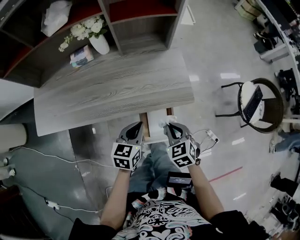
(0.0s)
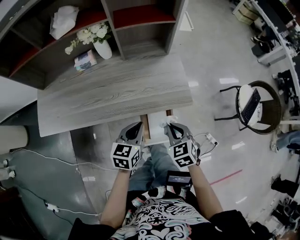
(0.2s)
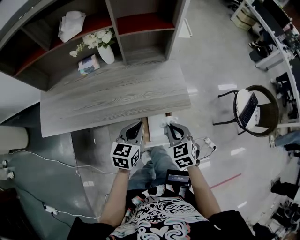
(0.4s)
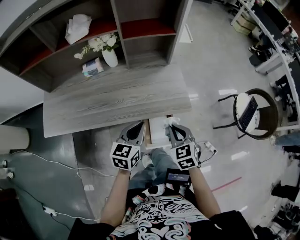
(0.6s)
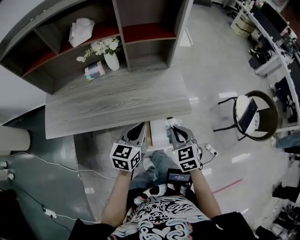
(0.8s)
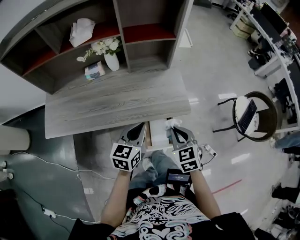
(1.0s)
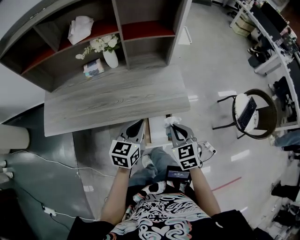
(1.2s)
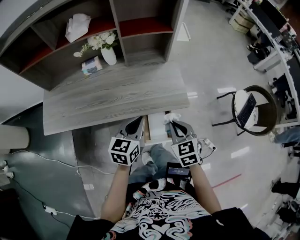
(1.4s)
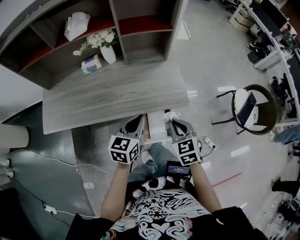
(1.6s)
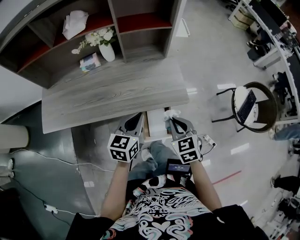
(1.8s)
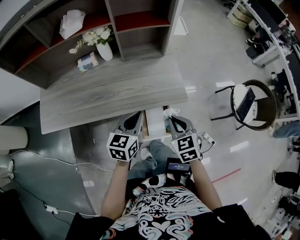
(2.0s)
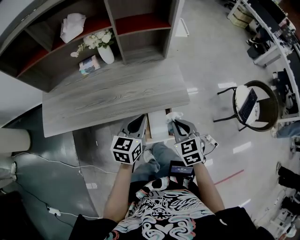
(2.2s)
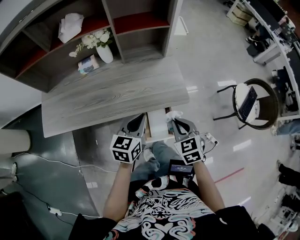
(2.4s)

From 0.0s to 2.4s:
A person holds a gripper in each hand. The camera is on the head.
From 0.0s to 1.2s: The two grippers go some 10 cm upward.
From 1.2s to 2.4s: There are only small adjustments of the grippers.

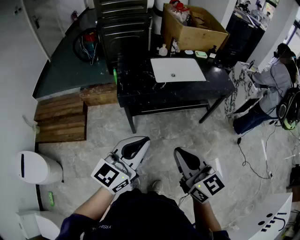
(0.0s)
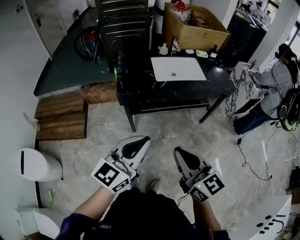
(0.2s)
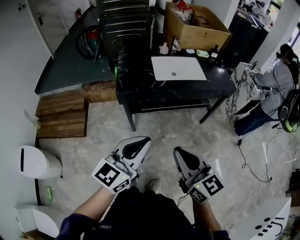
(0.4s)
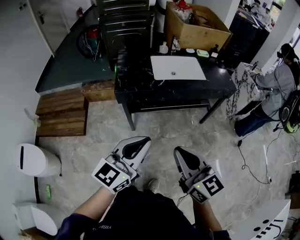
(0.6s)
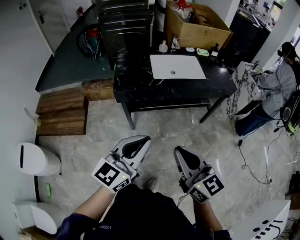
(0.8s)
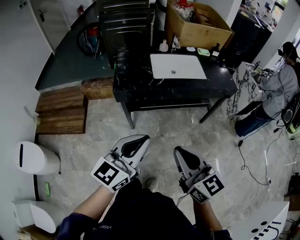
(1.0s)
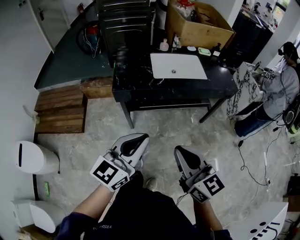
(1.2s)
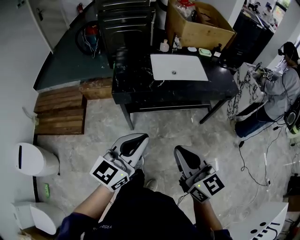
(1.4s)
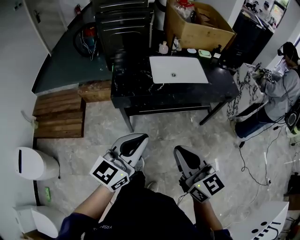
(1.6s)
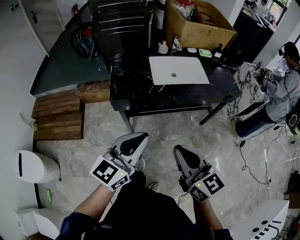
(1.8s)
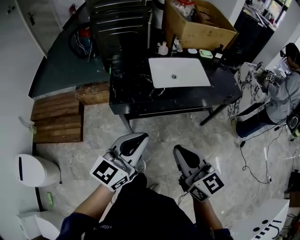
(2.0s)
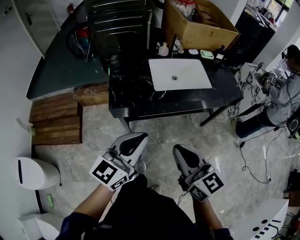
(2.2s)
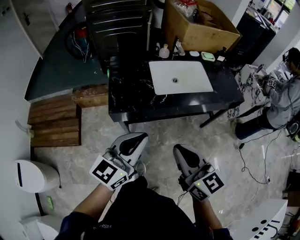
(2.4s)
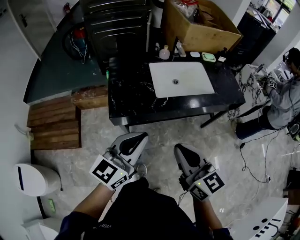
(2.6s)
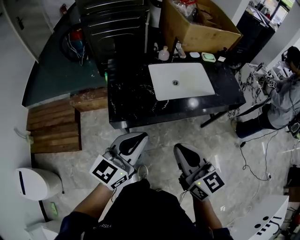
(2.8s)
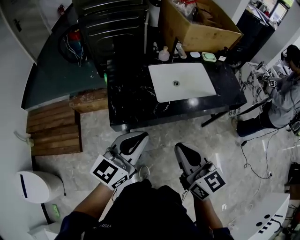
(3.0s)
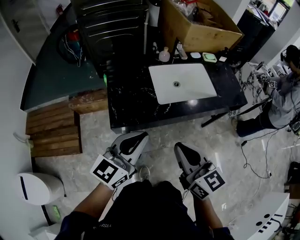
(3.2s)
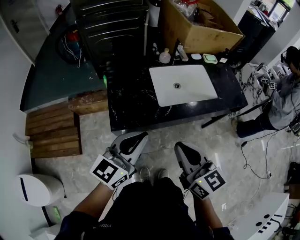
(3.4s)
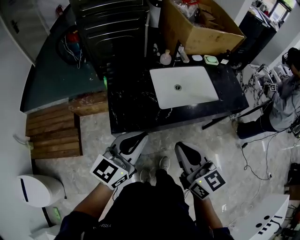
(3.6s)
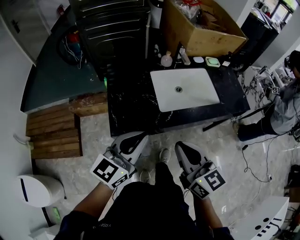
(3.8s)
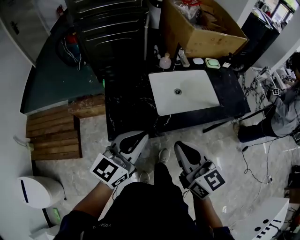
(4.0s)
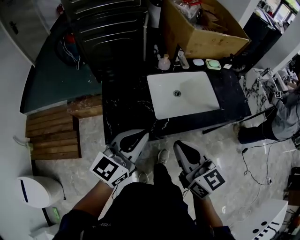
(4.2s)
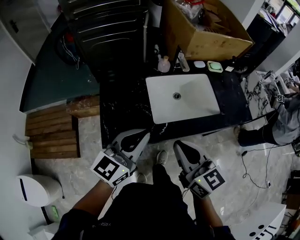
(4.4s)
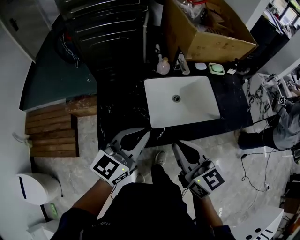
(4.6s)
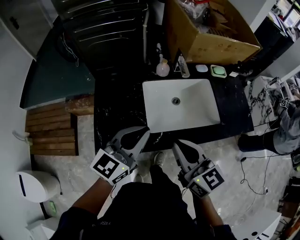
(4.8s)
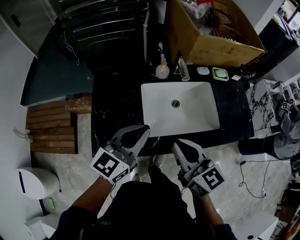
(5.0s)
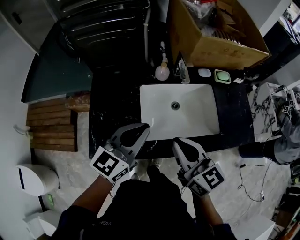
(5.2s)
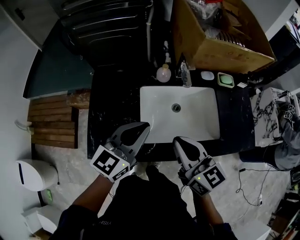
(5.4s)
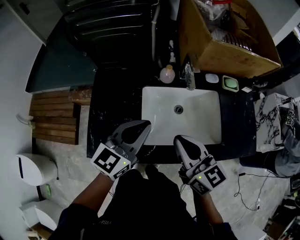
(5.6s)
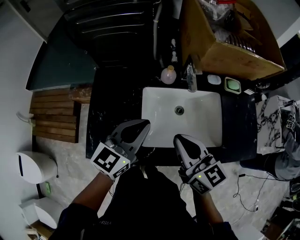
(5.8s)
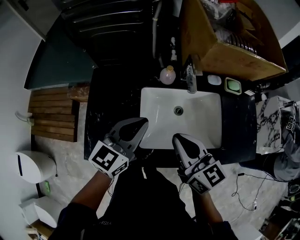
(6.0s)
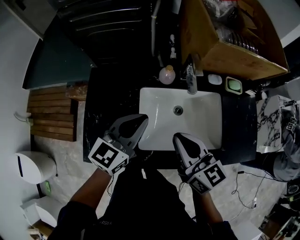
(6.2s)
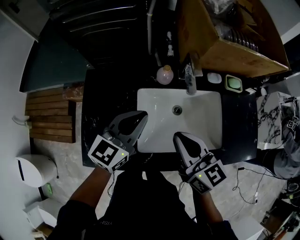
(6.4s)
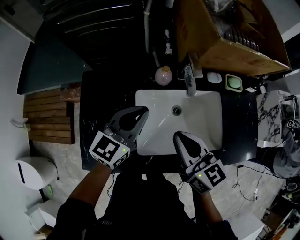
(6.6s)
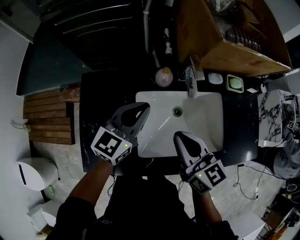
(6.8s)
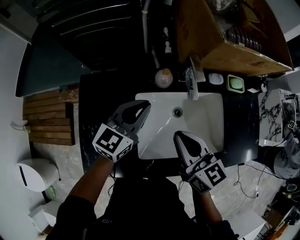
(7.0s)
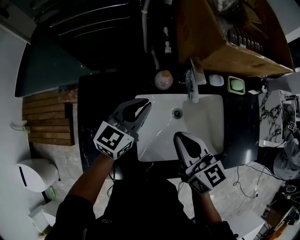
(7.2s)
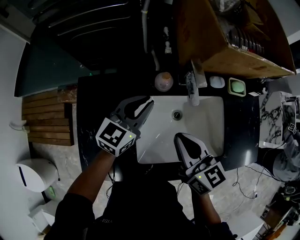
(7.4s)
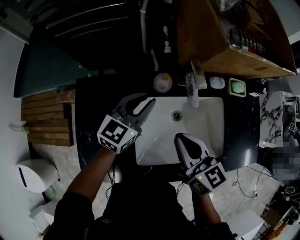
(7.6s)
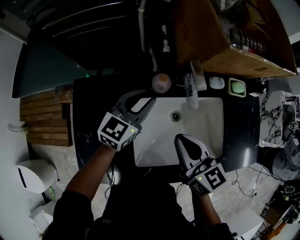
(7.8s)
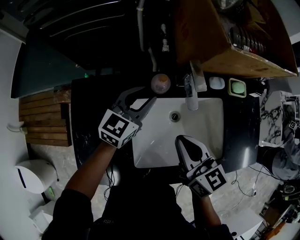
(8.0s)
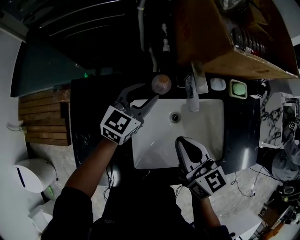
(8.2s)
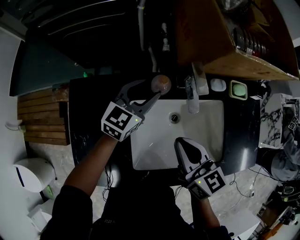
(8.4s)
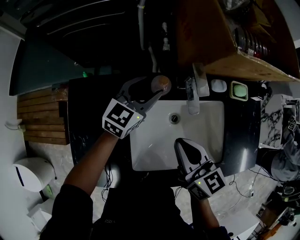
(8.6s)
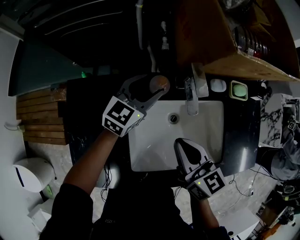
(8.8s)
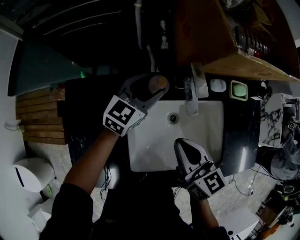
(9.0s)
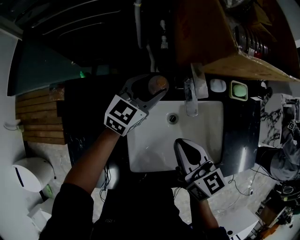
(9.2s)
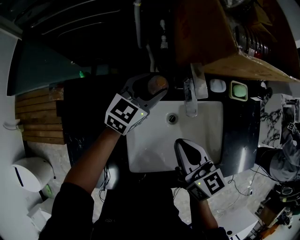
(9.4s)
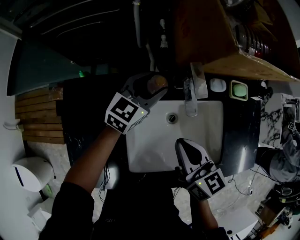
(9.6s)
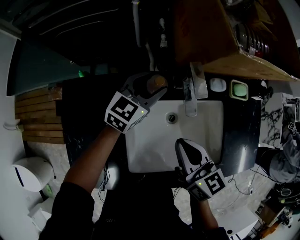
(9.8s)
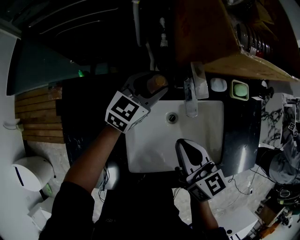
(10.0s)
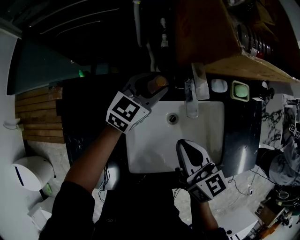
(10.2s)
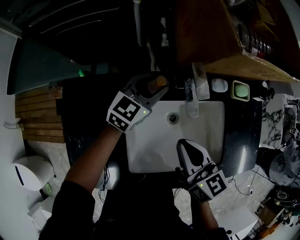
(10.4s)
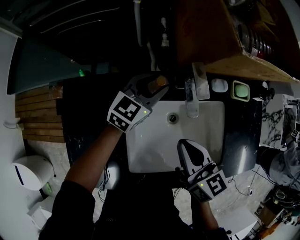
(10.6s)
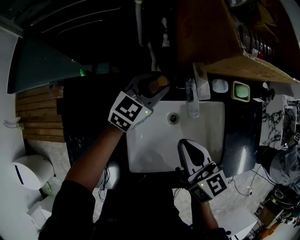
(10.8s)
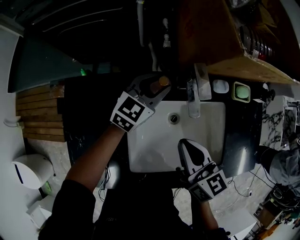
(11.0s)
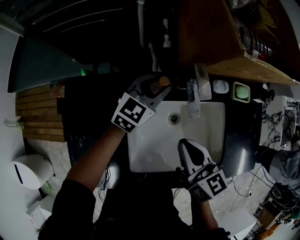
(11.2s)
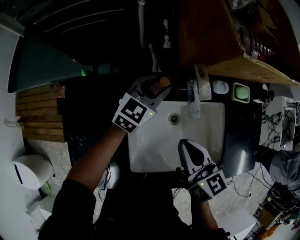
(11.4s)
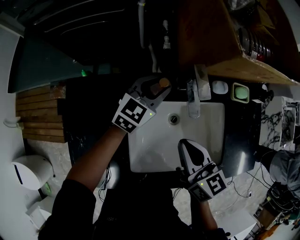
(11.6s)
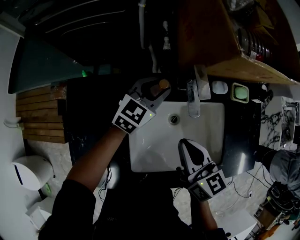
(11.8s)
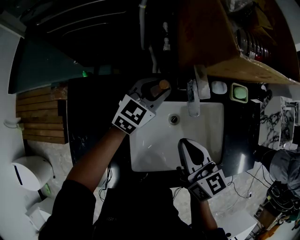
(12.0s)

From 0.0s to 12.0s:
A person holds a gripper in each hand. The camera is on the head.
From 0.0s to 1.6s: The two grippers go roughly 5 cm forward.
From 1.6s to 3.0s: The two grippers go some 20 cm forward.
From 3.0s to 4.4s: Both grippers travel together forward, about 15 cm.
From 4.4s to 6.0s: The grippers both shift forward by about 20 cm.
From 6.0s to 7.6s: The right gripper goes roughly 10 cm forward and downward, while the left gripper travels forward and downward by approximately 20 cm.
From 7.6s to 9.0s: The left gripper shifts about 10 cm forward, and opens its fingers.
From 9.0s to 12.0s: There are only small adjustments of the grippers.

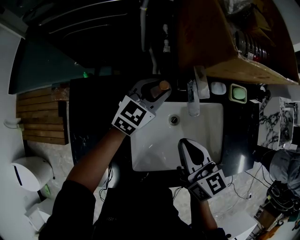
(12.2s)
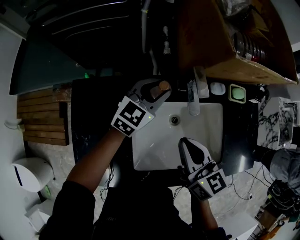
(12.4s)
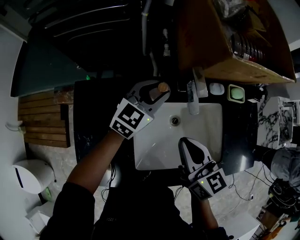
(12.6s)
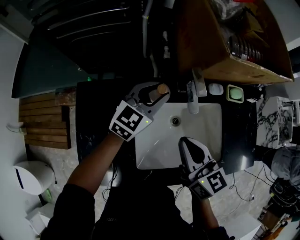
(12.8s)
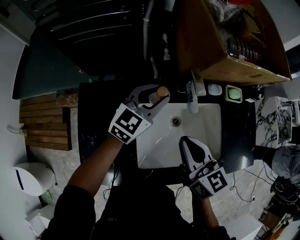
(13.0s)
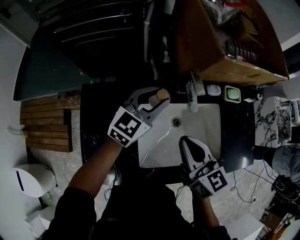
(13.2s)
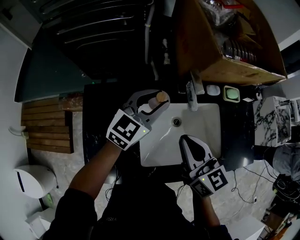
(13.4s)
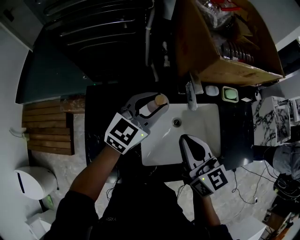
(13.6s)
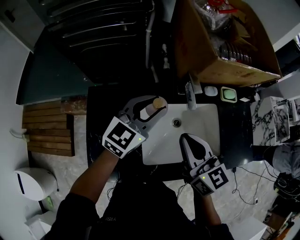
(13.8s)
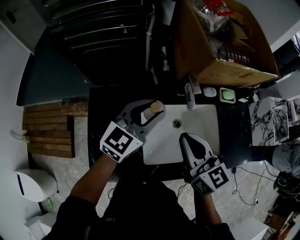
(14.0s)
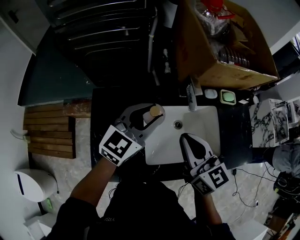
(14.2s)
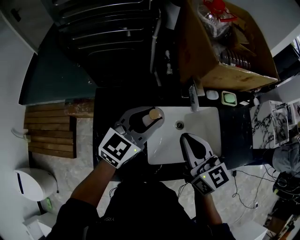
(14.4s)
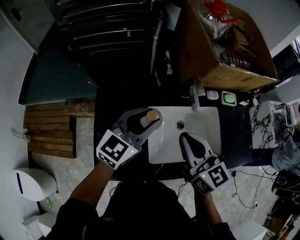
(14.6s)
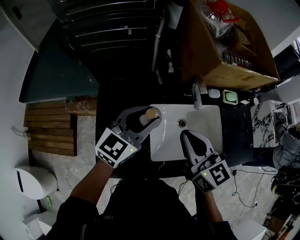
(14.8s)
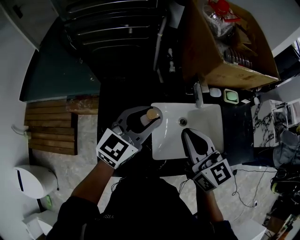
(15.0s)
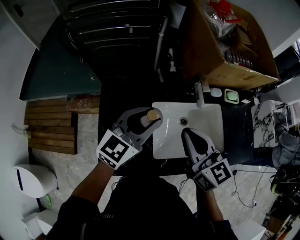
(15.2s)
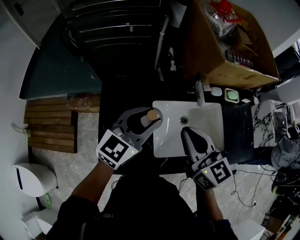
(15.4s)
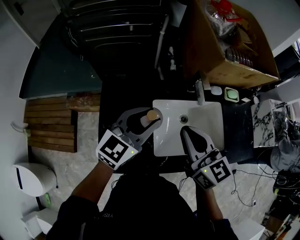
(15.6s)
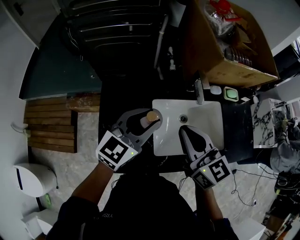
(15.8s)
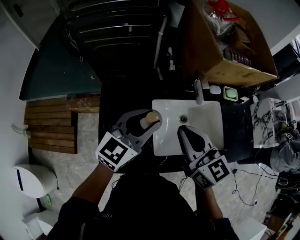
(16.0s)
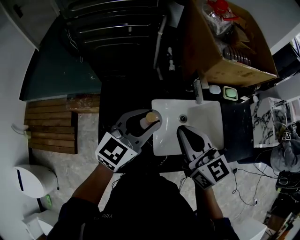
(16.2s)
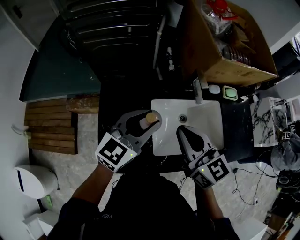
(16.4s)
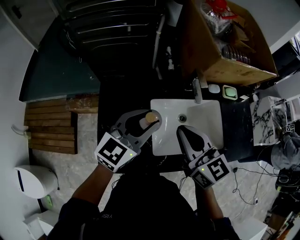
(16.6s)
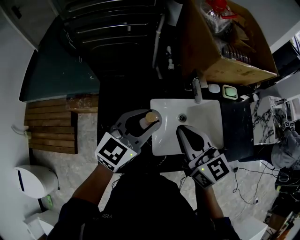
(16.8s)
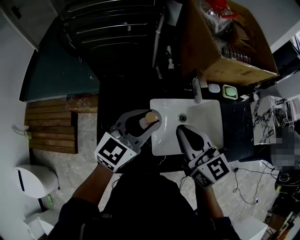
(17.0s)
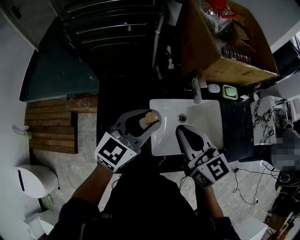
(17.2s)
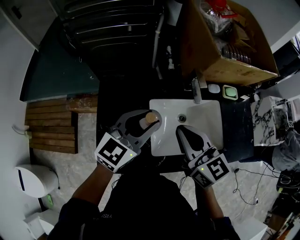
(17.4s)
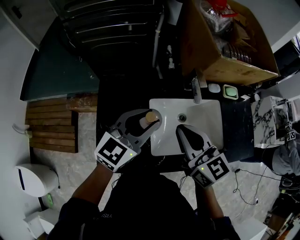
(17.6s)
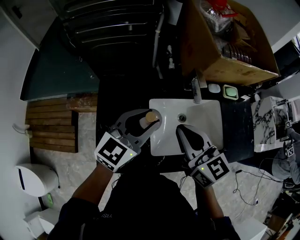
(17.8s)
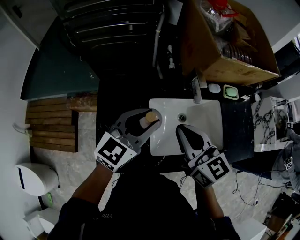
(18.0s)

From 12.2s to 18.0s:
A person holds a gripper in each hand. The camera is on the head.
From 12.2s to 13.6s: The left gripper shifts about 15 cm upward and backward, while the right gripper is displaced upward by some 10 cm.
From 13.6s to 15.0s: The right gripper goes roughly 10 cm upward and to the left. The left gripper moves backward and to the left, about 10 cm.
From 15.0s to 18.0s: The grippers make only small movements.

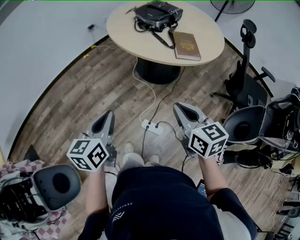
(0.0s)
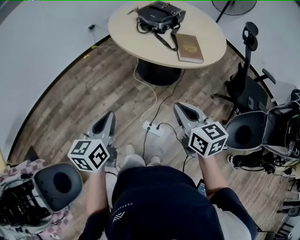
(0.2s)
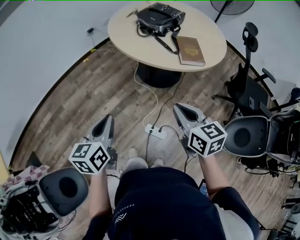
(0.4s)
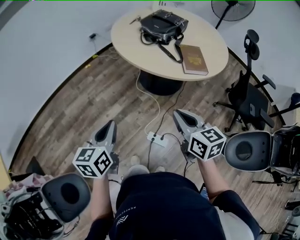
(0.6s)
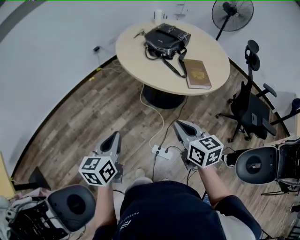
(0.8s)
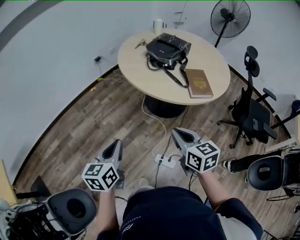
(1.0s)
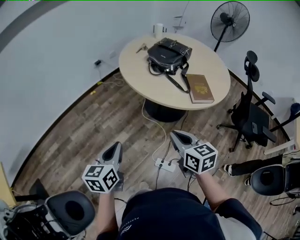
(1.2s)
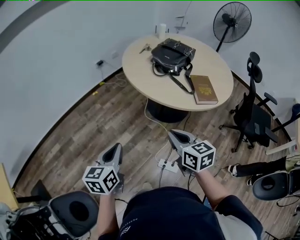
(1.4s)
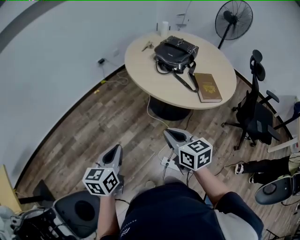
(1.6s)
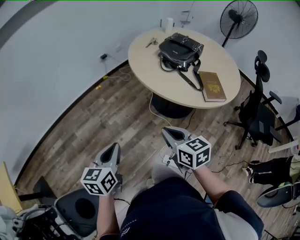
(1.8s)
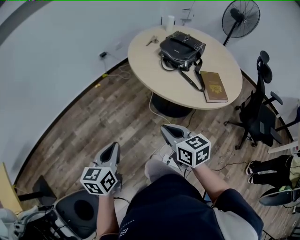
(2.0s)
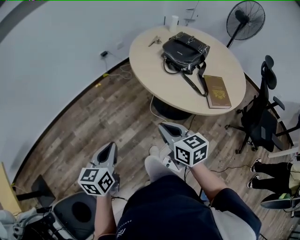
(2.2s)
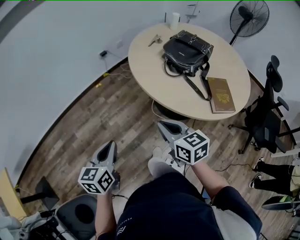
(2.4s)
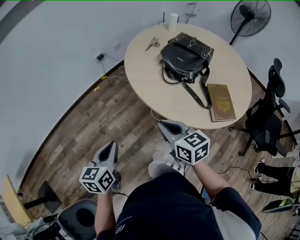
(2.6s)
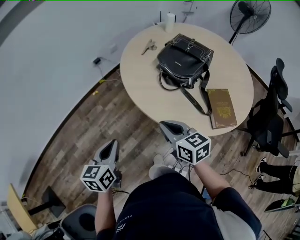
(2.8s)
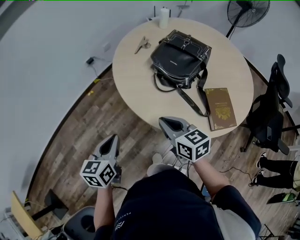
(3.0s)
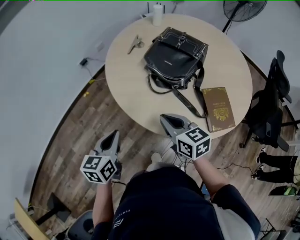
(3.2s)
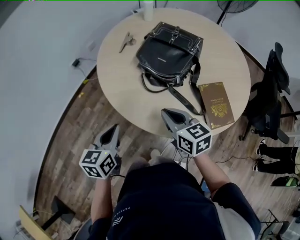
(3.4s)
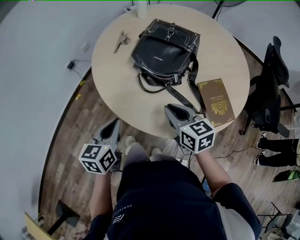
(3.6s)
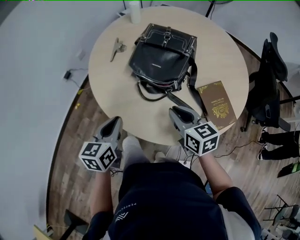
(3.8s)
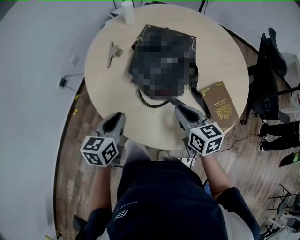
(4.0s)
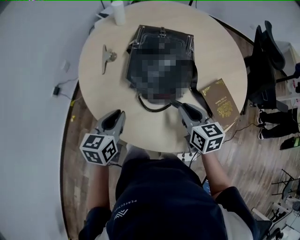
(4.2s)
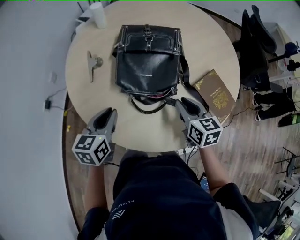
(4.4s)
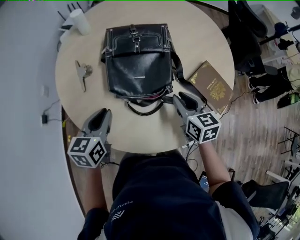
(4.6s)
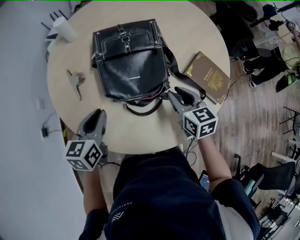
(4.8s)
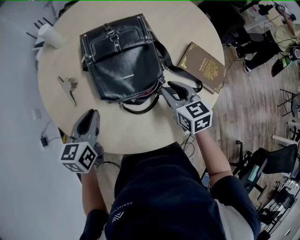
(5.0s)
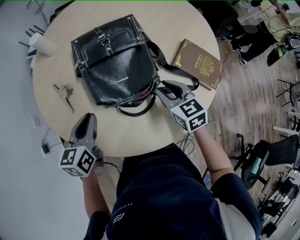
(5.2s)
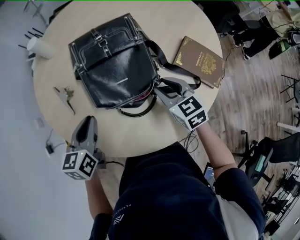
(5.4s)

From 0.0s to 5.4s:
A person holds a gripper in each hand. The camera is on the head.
From 0.0s to 1.4s: The grippers both shift forward and to the left by roughly 20 cm.
From 1.4s to 2.8s: Both grippers travel together forward, approximately 25 cm.
From 2.8s to 4.0s: The right gripper shifts by approximately 20 cm, and turns by approximately 30 degrees. The left gripper ends up about 30 cm from where it was, and changes its angle by some 30 degrees.
From 4.0s to 5.4s: The right gripper moves approximately 10 cm, and rotates about 30 degrees, while the left gripper changes place by approximately 15 cm, and swivels some 30 degrees.
